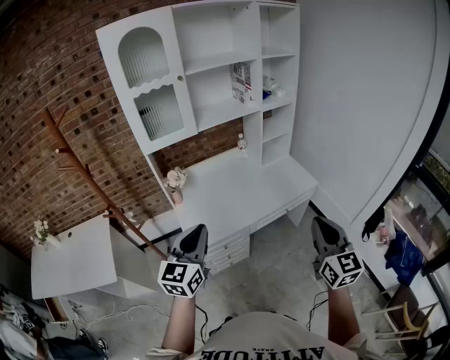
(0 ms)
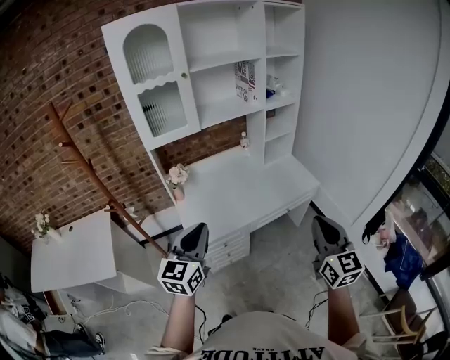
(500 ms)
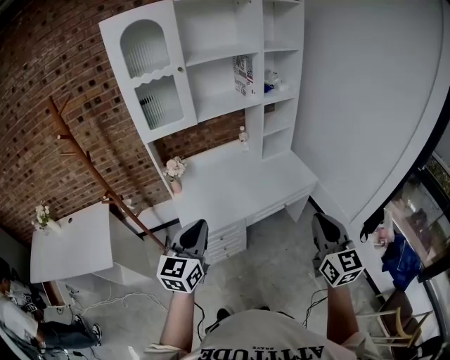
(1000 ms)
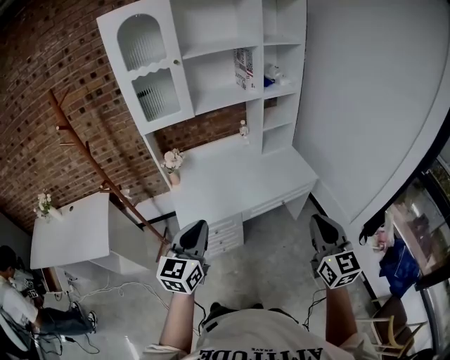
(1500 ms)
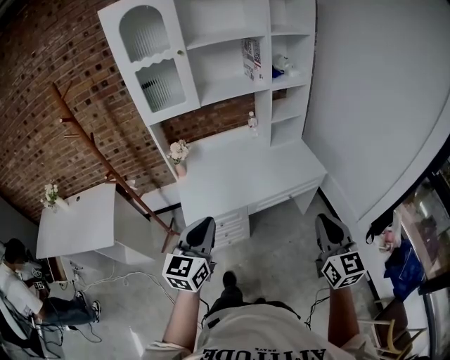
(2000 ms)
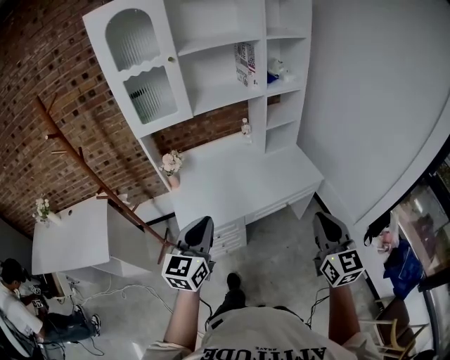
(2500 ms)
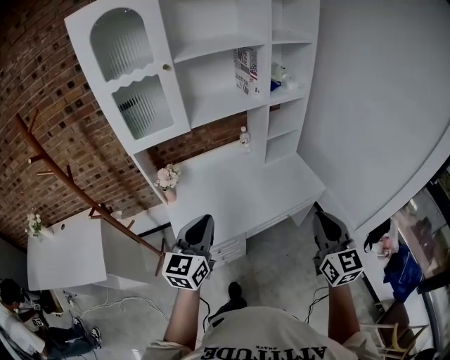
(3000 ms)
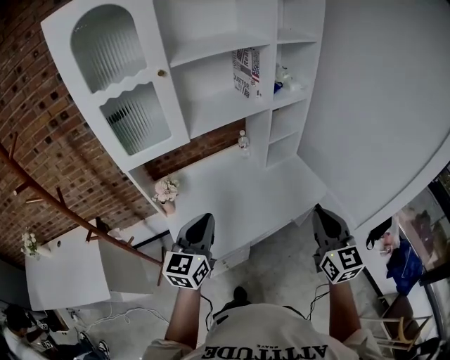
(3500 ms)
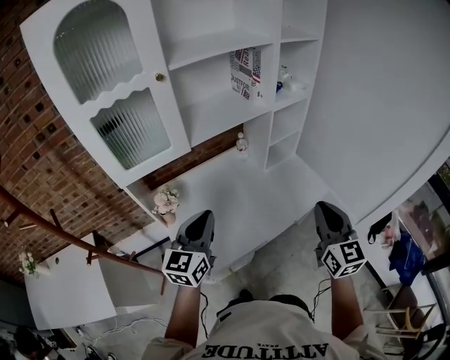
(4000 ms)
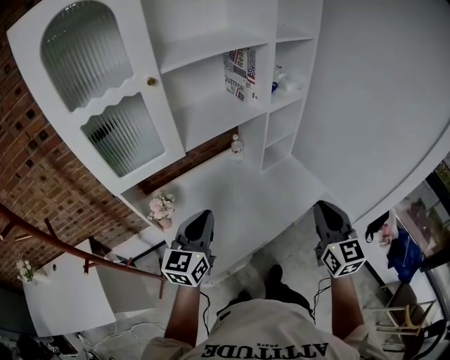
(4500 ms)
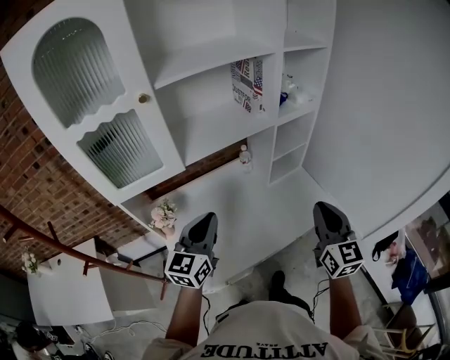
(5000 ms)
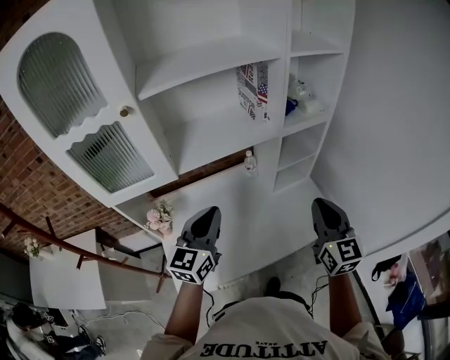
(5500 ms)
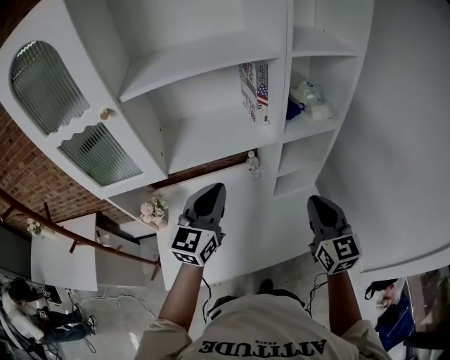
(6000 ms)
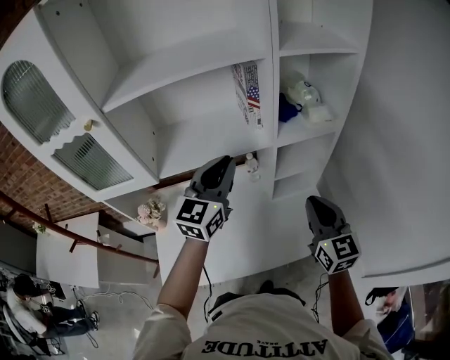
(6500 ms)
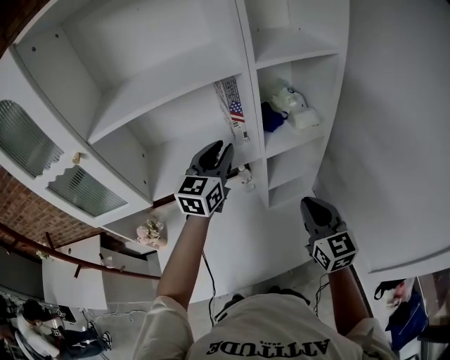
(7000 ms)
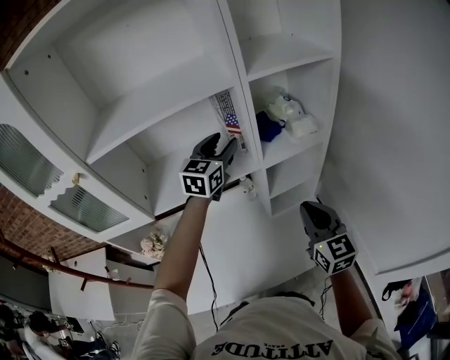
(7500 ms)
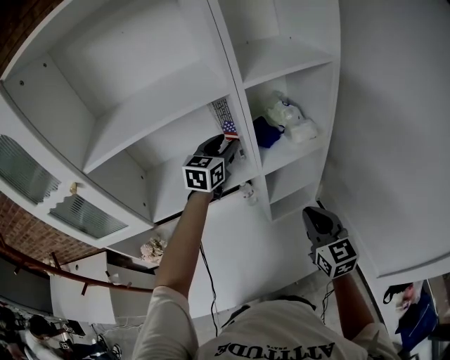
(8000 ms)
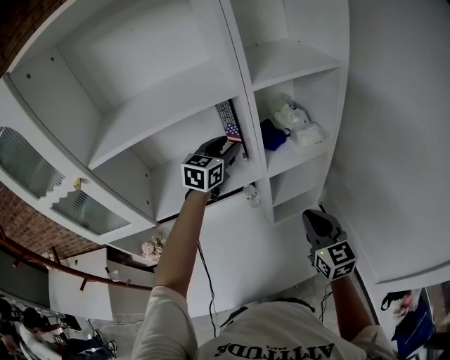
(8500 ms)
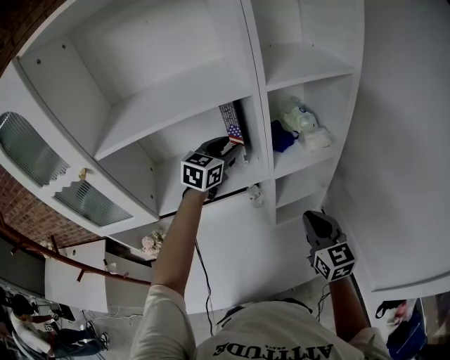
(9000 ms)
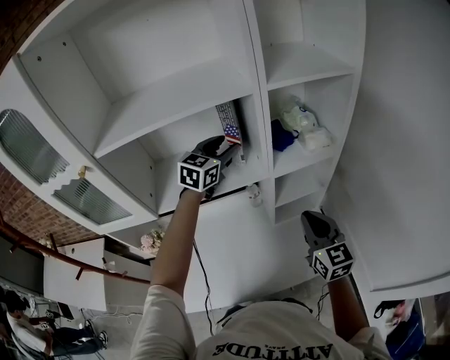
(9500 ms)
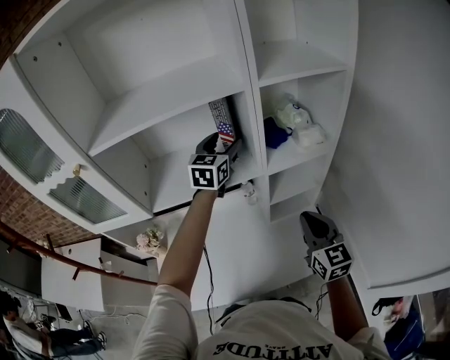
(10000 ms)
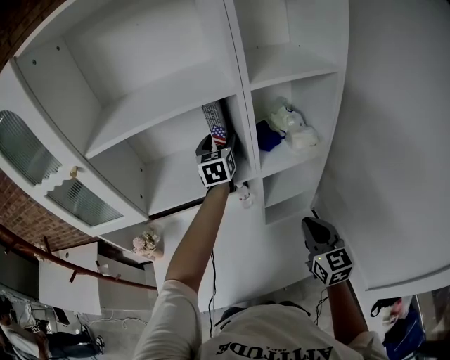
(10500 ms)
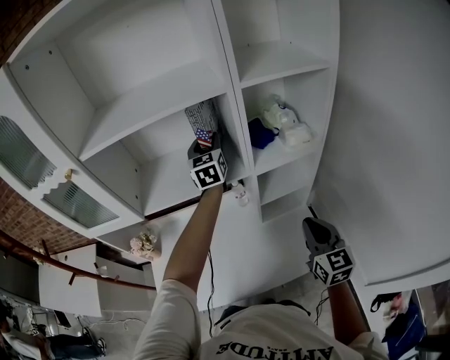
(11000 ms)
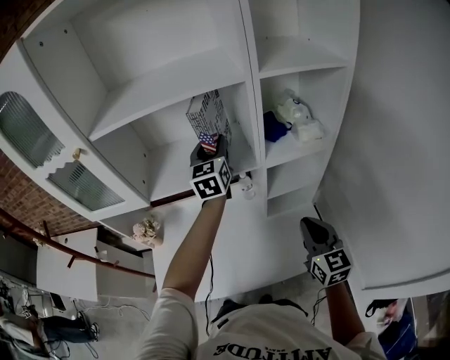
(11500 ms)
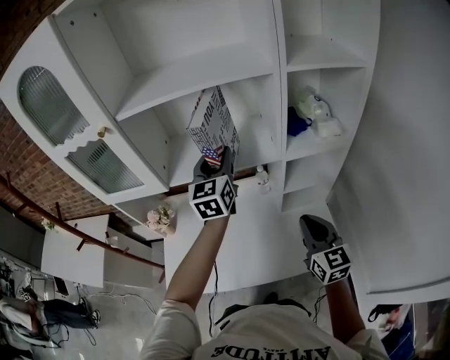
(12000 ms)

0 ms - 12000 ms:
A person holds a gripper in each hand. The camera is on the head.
0 ms - 2000 ms: The two grippers go about 10 cm to the right.
2000 ms - 4000 ms: The right gripper shifts approximately 30 cm forward and to the left; the left gripper heads forward, covering about 30 cm.
4000 ms - 6000 ms: The right gripper goes approximately 25 cm forward. The left gripper goes about 25 cm forward and to the right.
6000 ms - 8000 ms: The left gripper is displaced forward by roughly 30 cm, and opens; the right gripper heads forward, covering approximately 10 cm.
8000 ms - 10000 ms: The left gripper opens its fingers.
10000 ms - 12000 ms: The right gripper shifts by approximately 5 cm. The left gripper goes about 15 cm backward and to the left, swivels approximately 20 degrees, and closes its fingers.

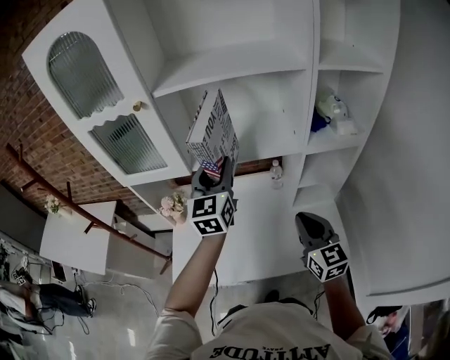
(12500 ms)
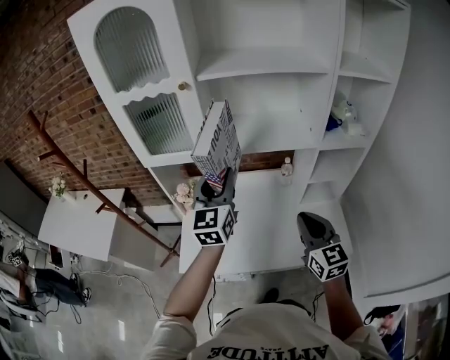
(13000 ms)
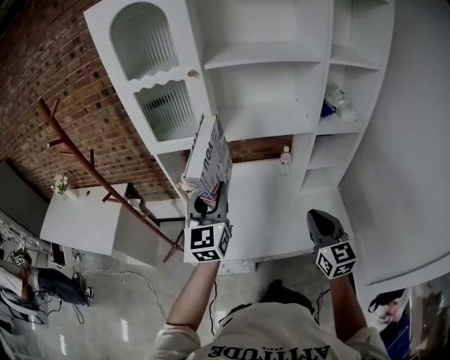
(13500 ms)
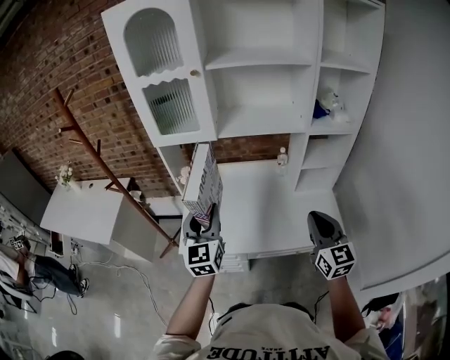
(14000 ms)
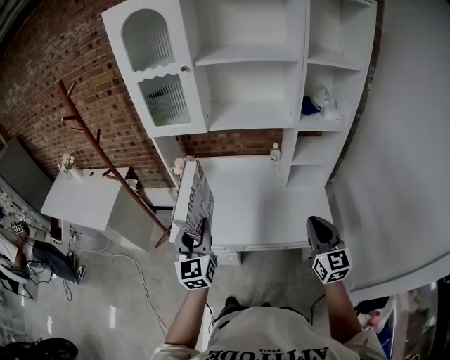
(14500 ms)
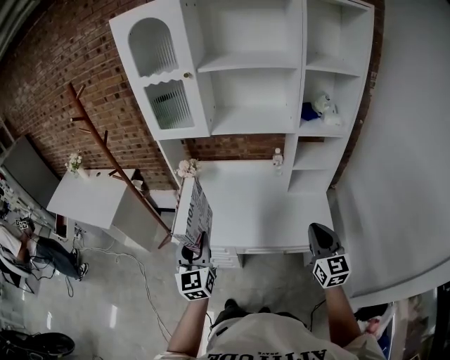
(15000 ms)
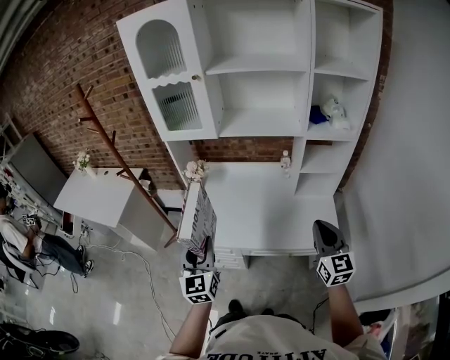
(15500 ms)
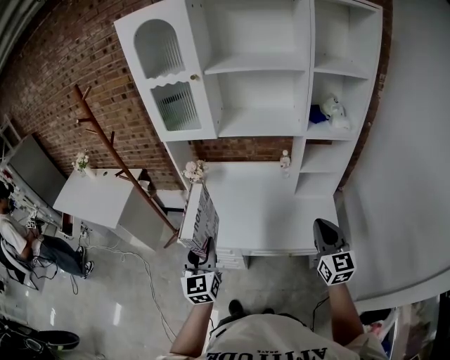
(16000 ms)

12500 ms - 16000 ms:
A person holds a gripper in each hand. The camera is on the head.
12500 ms - 14500 ms: The left gripper shifts about 35 cm backward; the right gripper travels backward by about 25 cm.
14500 ms - 16000 ms: The left gripper moves roughly 5 cm.

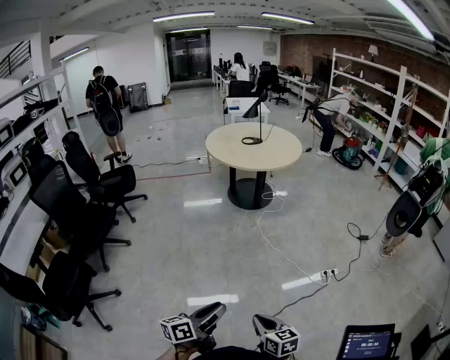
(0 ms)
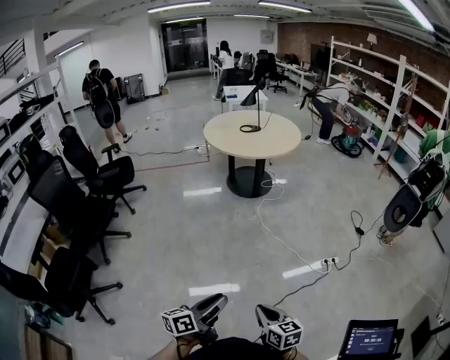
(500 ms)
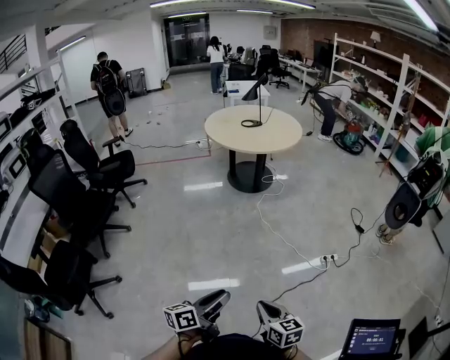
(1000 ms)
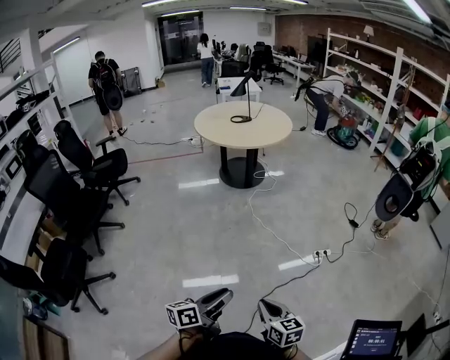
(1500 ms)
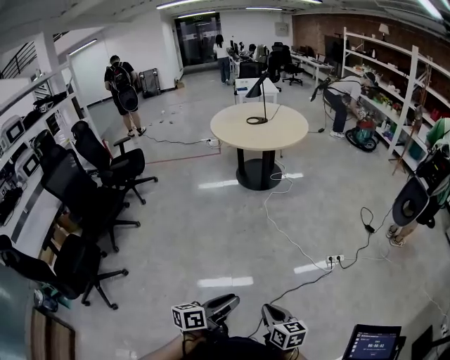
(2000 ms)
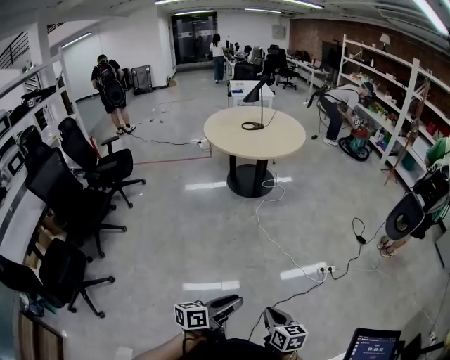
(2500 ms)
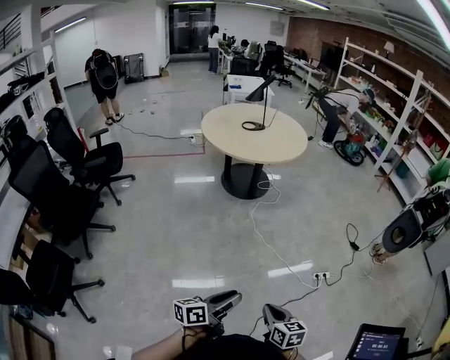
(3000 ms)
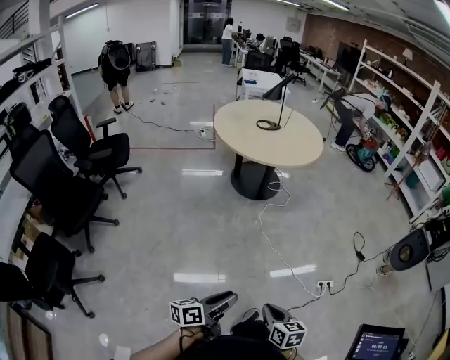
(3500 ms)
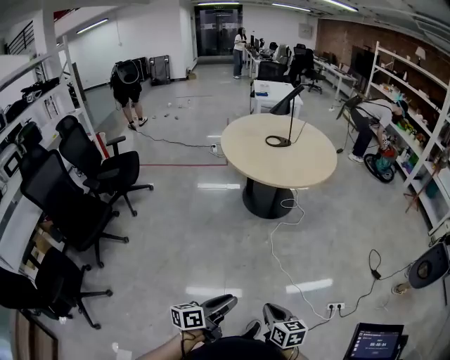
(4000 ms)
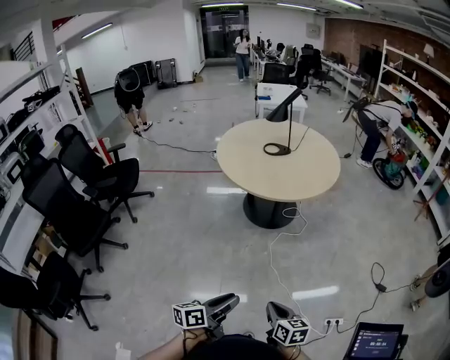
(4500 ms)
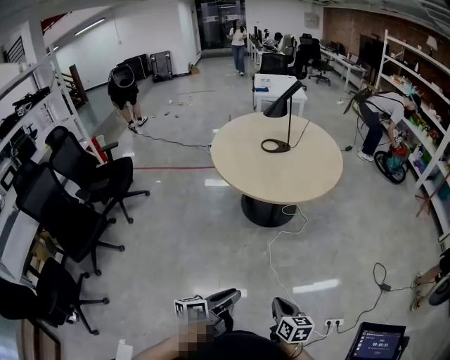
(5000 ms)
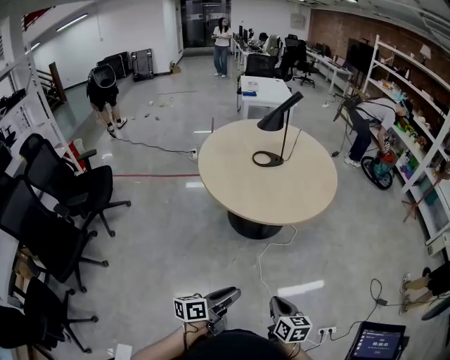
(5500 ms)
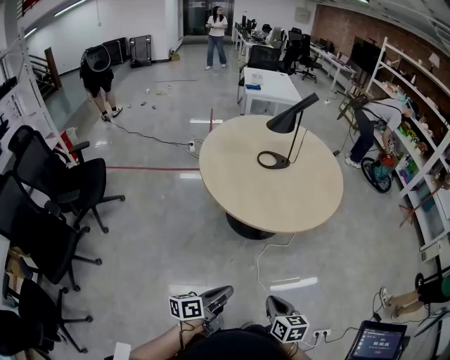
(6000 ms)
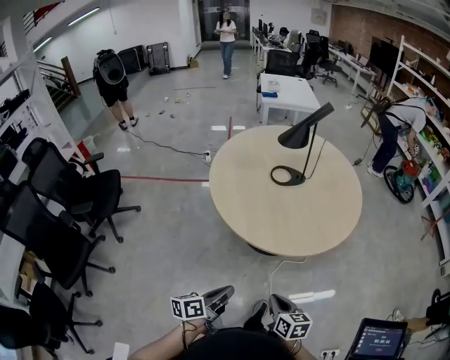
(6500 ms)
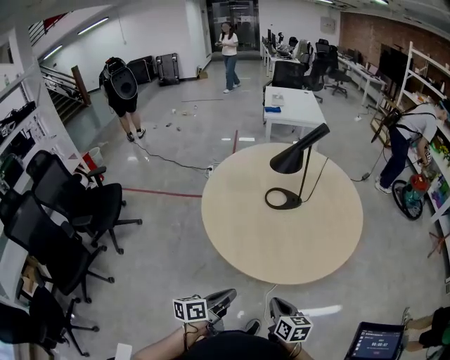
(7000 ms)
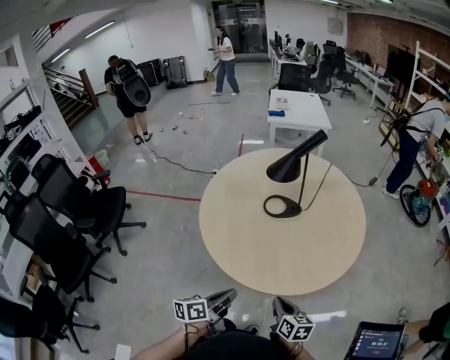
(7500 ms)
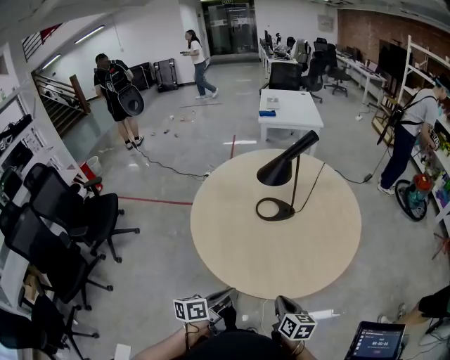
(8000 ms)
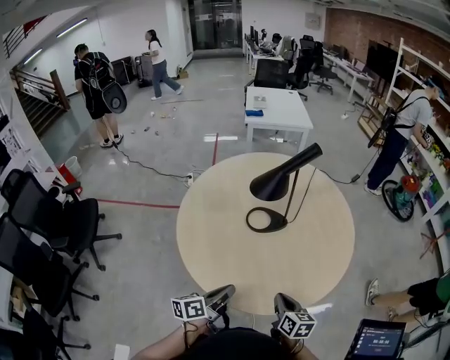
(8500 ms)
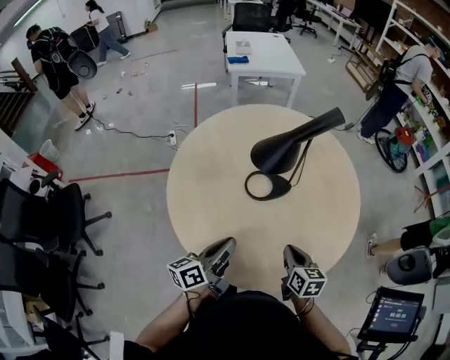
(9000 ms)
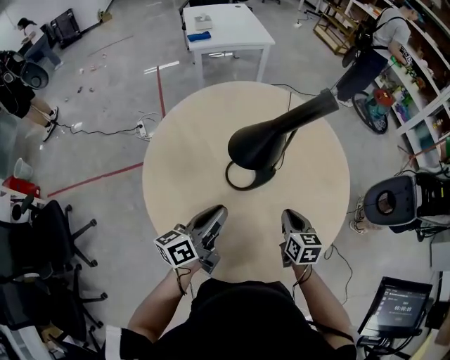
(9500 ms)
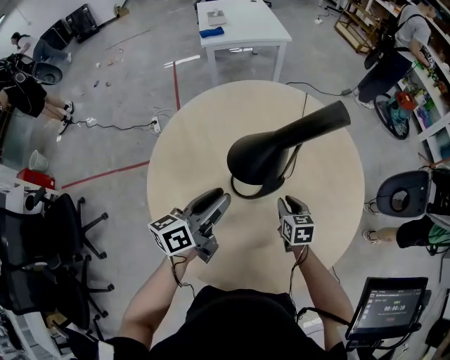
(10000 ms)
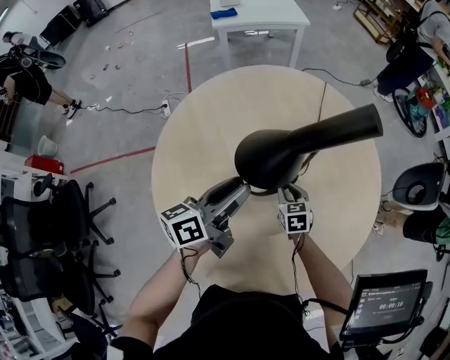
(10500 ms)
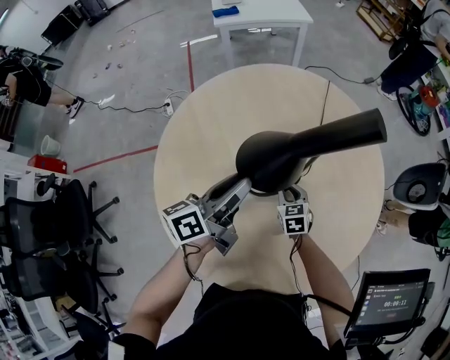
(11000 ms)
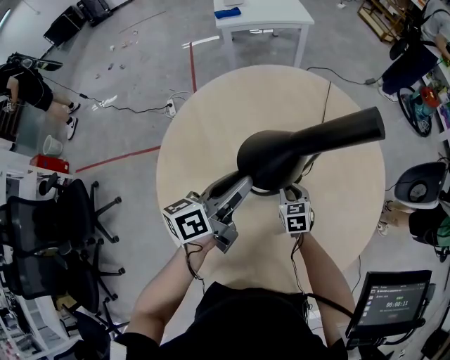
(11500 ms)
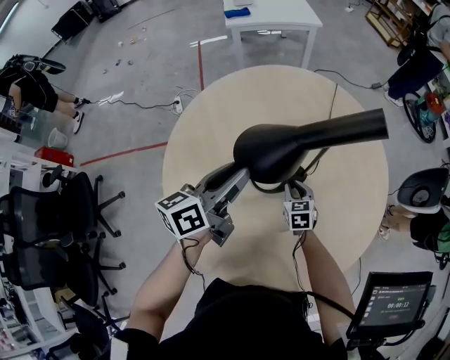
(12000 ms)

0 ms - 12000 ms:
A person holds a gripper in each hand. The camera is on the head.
0 ms - 2000 ms: Both grippers move to the right, approximately 10 cm.
2000 ms - 4000 ms: The two grippers go about 35 cm forward.
4000 ms - 6000 ms: Both grippers travel together forward, about 35 cm. The left gripper closes its fingers.
6000 ms - 8000 ms: The grippers both shift forward by approximately 30 cm.
8000 ms - 10000 ms: Both grippers move forward, approximately 35 cm. The left gripper rotates some 20 degrees, and opens its fingers, while the right gripper changes its angle by roughly 20 degrees.
10000 ms - 12000 ms: The right gripper travels downward and to the left by some 10 cm; the left gripper changes place by some 5 cm.
